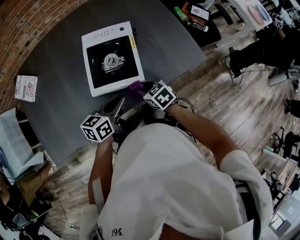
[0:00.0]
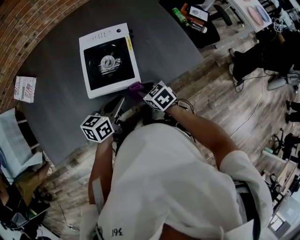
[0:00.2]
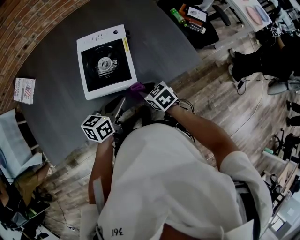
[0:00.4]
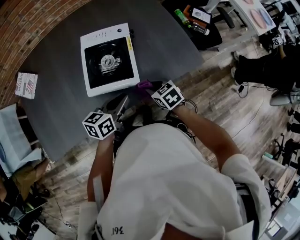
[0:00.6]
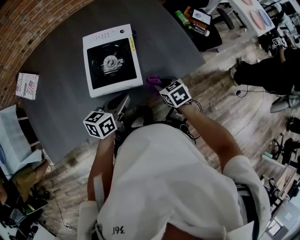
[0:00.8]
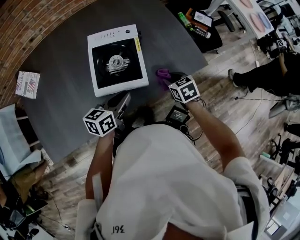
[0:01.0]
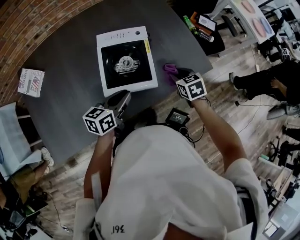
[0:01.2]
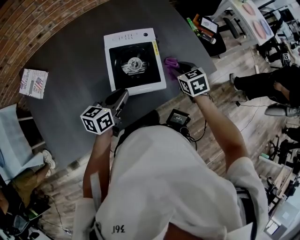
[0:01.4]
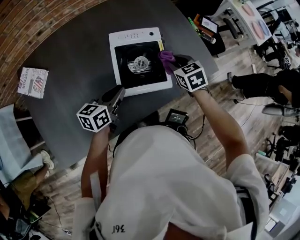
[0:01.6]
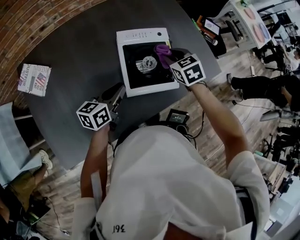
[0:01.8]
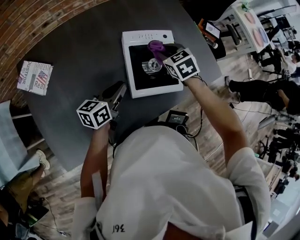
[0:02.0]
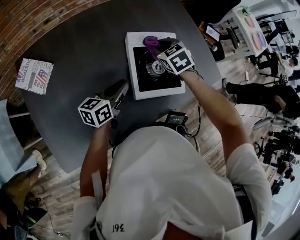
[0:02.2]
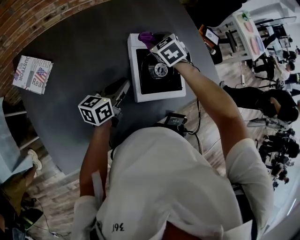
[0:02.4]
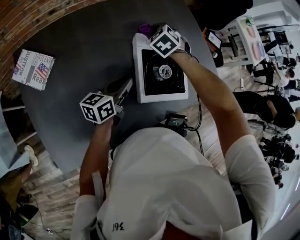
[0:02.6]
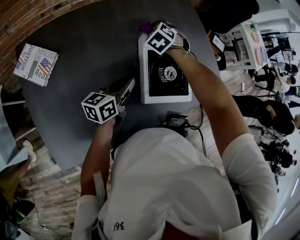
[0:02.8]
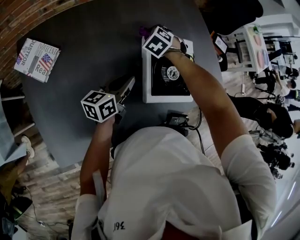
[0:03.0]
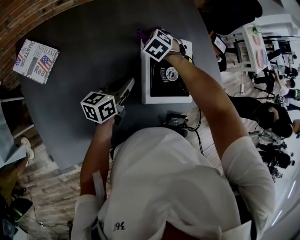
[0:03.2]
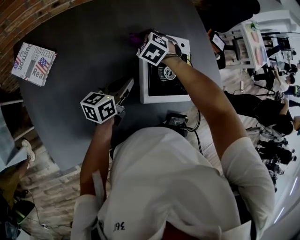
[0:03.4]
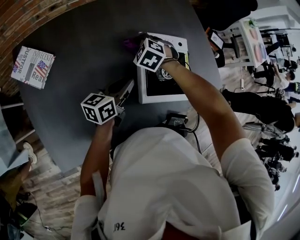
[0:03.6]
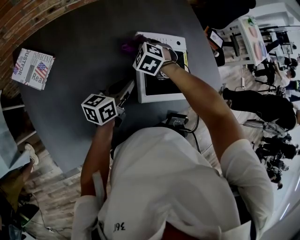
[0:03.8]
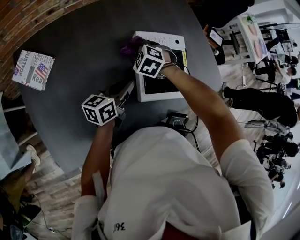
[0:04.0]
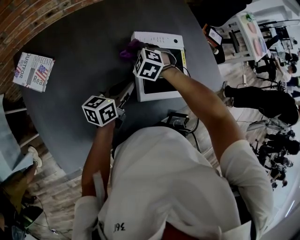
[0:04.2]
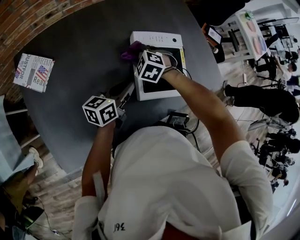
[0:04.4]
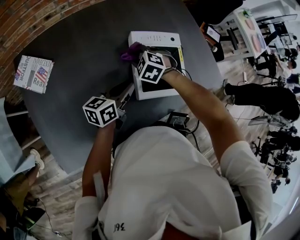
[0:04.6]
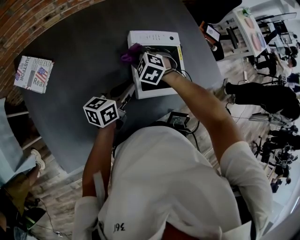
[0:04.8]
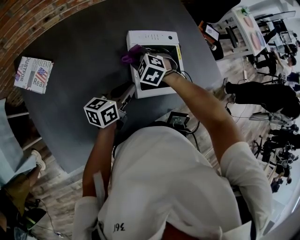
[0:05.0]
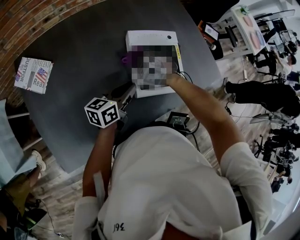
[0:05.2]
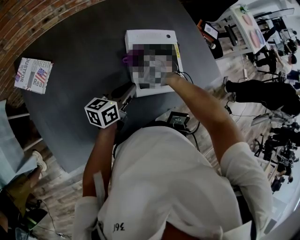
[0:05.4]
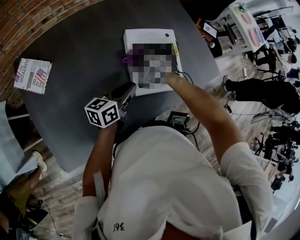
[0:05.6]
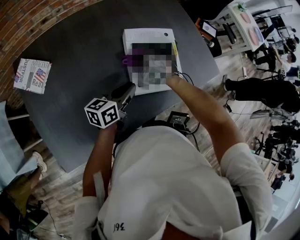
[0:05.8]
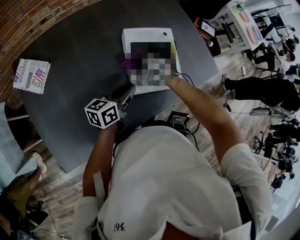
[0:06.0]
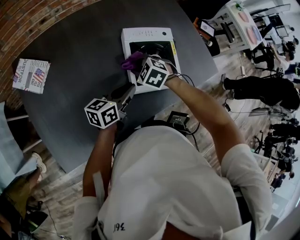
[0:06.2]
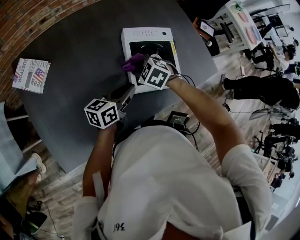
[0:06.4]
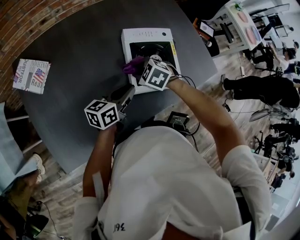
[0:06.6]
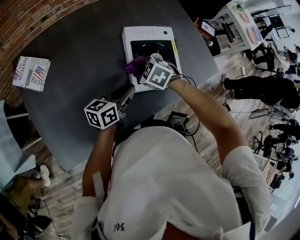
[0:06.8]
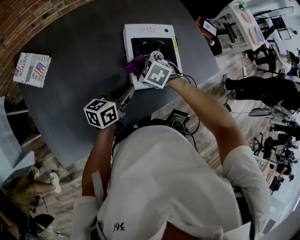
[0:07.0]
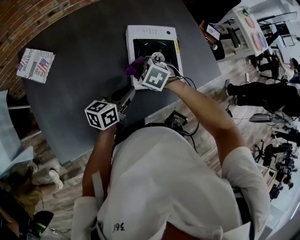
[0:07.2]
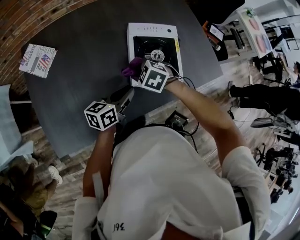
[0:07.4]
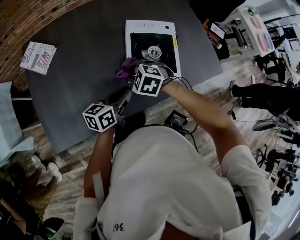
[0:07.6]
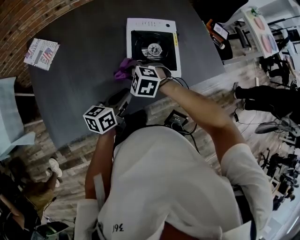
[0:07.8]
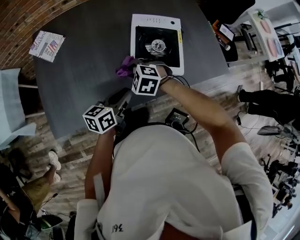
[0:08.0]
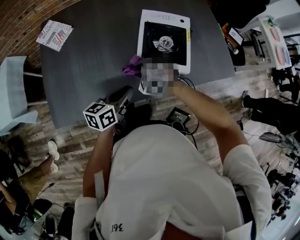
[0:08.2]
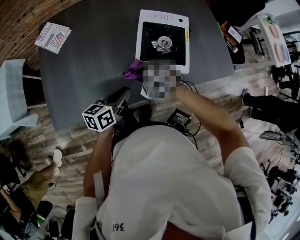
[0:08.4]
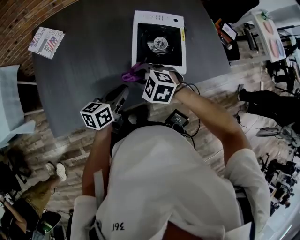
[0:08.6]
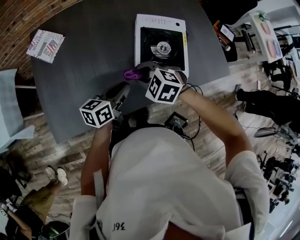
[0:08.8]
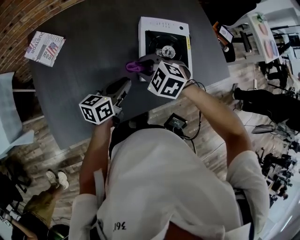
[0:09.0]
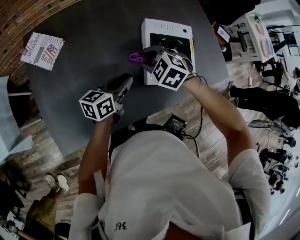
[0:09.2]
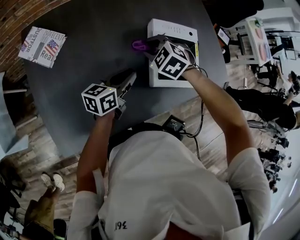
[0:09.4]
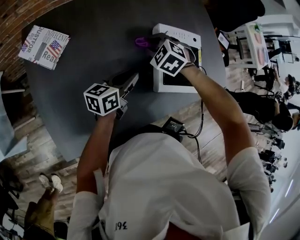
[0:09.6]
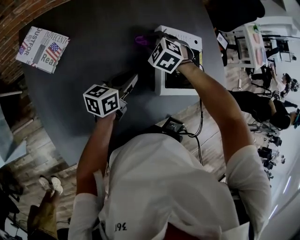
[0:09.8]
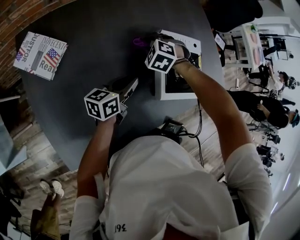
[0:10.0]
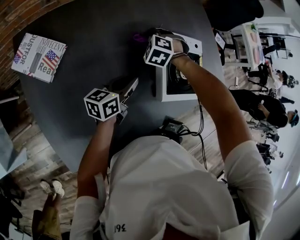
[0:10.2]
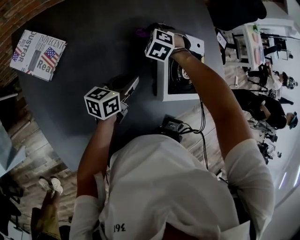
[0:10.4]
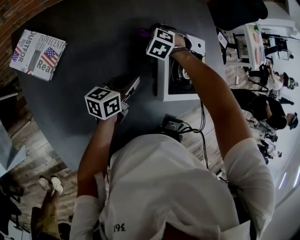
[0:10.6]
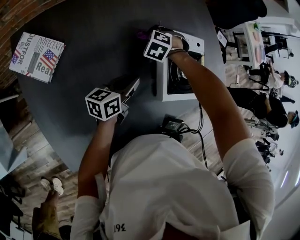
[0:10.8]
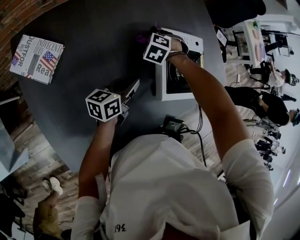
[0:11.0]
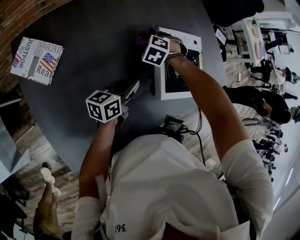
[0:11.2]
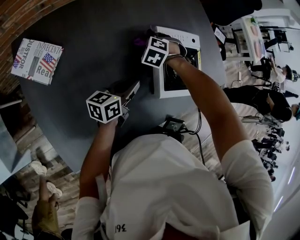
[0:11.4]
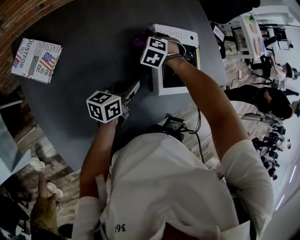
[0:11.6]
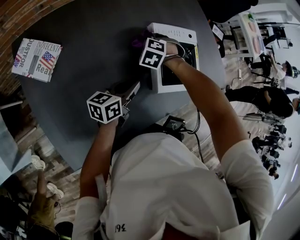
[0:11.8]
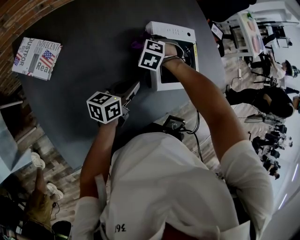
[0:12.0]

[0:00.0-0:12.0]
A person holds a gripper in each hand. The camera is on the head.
0:00.0 to 0:01.6: The right gripper goes some 15 cm forward and upward, and rotates approximately 20 degrees; the left gripper is displaced to the left and forward by roughly 15 cm.
0:01.6 to 0:03.0: The left gripper shifts some 10 cm to the left; the right gripper heads to the left, covering roughly 30 cm, and turns by approximately 40 degrees.
0:03.0 to 0:04.4: The right gripper shifts approximately 10 cm backward.
0:04.4 to 0:06.0: The right gripper goes roughly 5 cm backward. The left gripper ends up some 5 cm from where it was.
0:06.0 to 0:07.6: The grippers both shift backward by approximately 10 cm.
0:07.6 to 0:09.0: The left gripper travels to the left by approximately 5 cm; the right gripper moves roughly 5 cm backward and comes back.
0:09.0 to 0:10.4: The left gripper shifts by approximately 15 cm. Meanwhile the right gripper shifts by some 25 cm, and rotates some 30 degrees.
0:10.4 to 0:12.0: The left gripper is displaced to the right by approximately 5 cm, while the right gripper is displaced to the right and backward by about 10 cm.

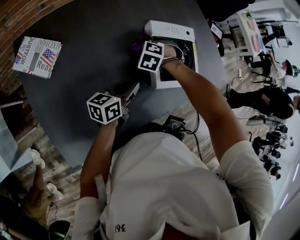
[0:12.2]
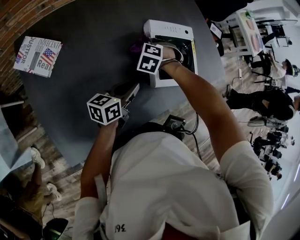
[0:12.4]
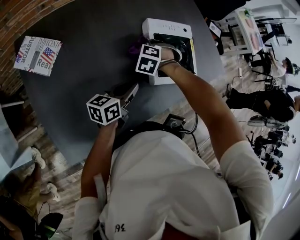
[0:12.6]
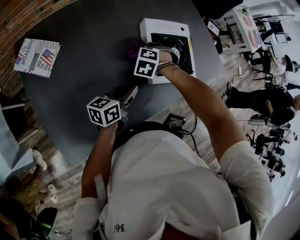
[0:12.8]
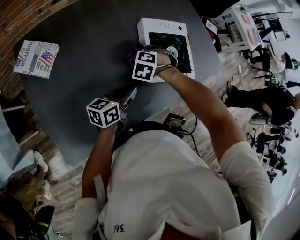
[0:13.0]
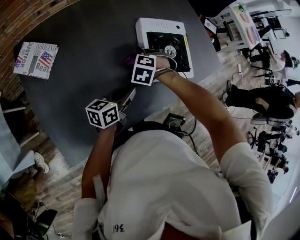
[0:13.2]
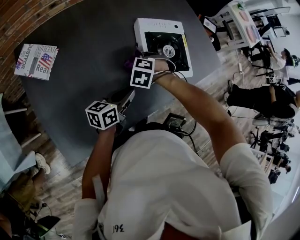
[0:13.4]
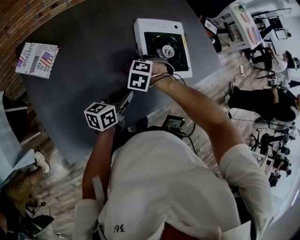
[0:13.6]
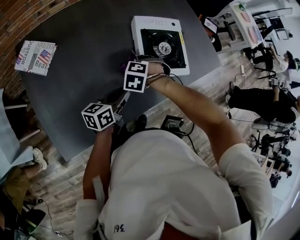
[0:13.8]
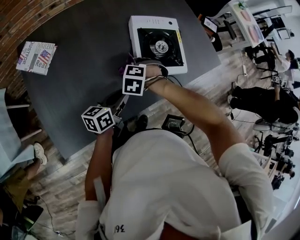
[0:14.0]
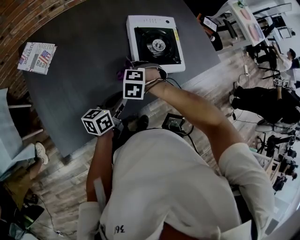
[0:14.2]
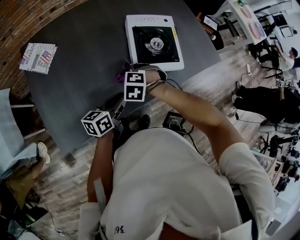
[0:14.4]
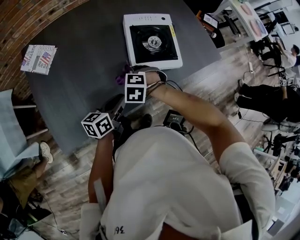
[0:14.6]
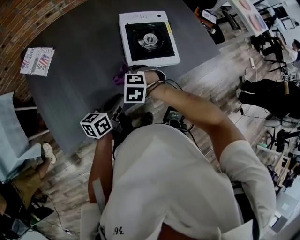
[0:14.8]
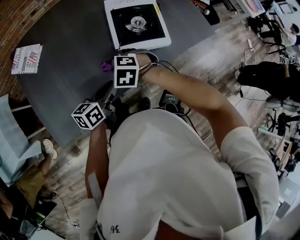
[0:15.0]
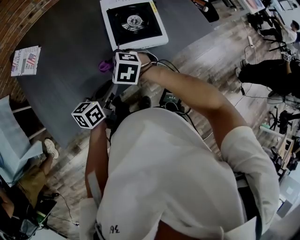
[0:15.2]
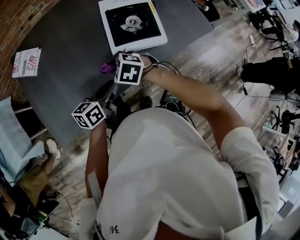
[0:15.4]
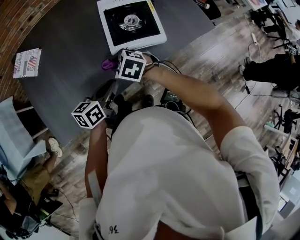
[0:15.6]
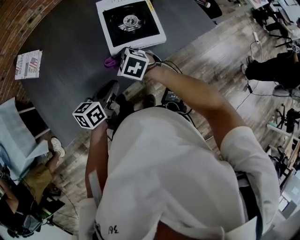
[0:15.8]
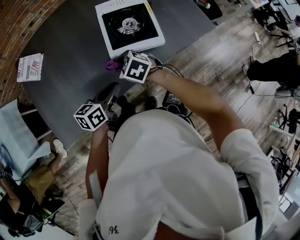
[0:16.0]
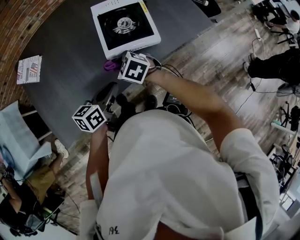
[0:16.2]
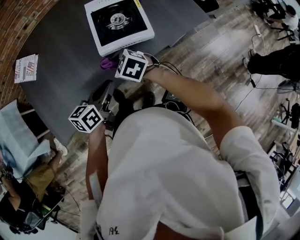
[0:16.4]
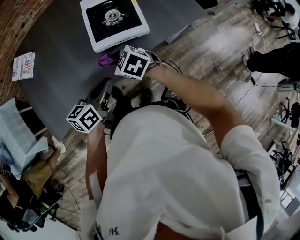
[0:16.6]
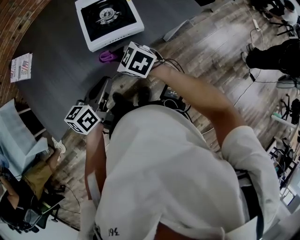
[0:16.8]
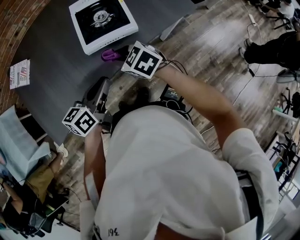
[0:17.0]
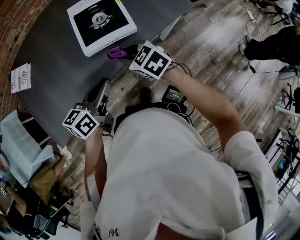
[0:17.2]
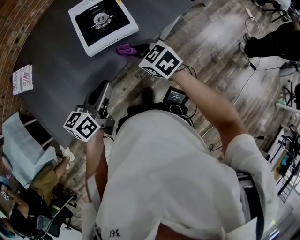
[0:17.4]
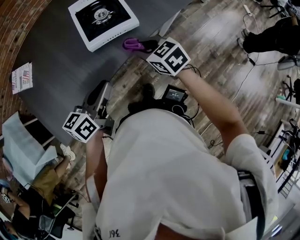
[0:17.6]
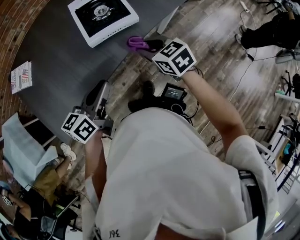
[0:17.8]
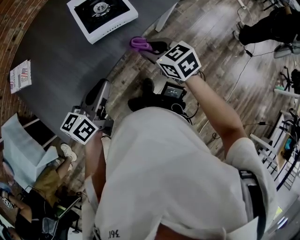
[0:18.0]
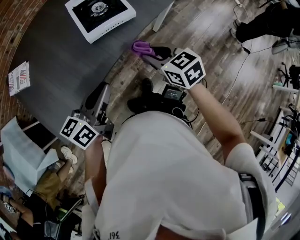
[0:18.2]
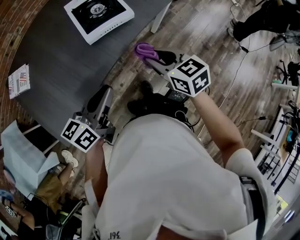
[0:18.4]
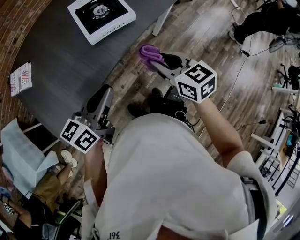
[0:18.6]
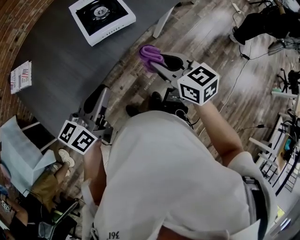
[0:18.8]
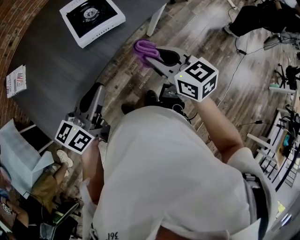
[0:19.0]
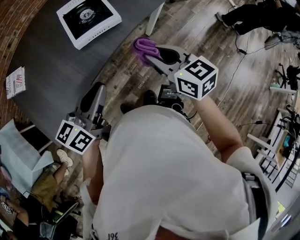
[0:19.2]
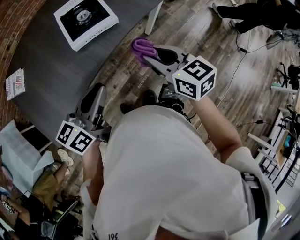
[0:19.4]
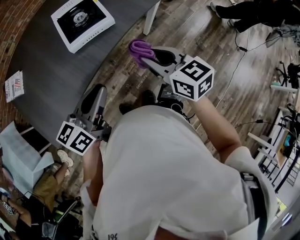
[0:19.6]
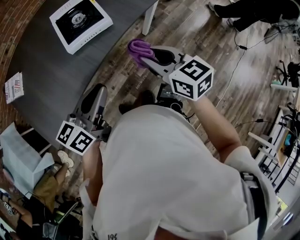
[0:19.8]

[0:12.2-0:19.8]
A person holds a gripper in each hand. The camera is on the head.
0:12.2 to 0:13.8: The left gripper moves roughly 10 cm, while the right gripper moves some 15 cm.
0:13.8 to 0:15.2: The left gripper changes place by approximately 10 cm. Meanwhile the right gripper moves about 10 cm, and changes its angle by about 30 degrees.
0:15.2 to 0:16.8: The left gripper shifts roughly 5 cm to the right. Meanwhile the right gripper shifts some 10 cm to the right, and swivels roughly 30 degrees.
0:16.8 to 0:18.2: The right gripper shifts roughly 15 cm backward, to the right and upward, and changes its angle by some 30 degrees, while the left gripper is displaced backward and upward by roughly 10 cm.
0:18.2 to 0:19.8: The left gripper travels to the right by roughly 10 cm; the right gripper is displaced to the right and upward by about 10 cm.

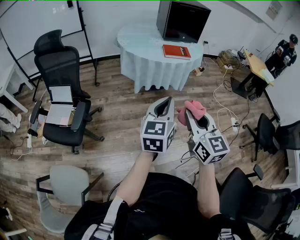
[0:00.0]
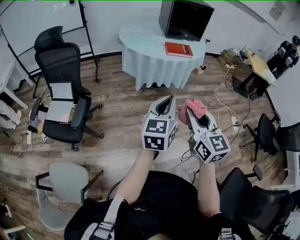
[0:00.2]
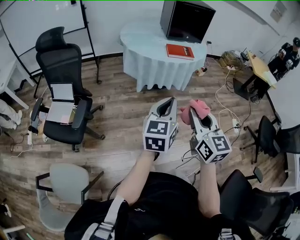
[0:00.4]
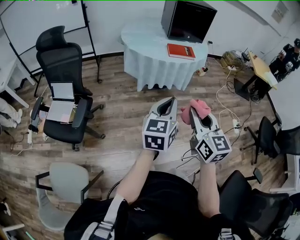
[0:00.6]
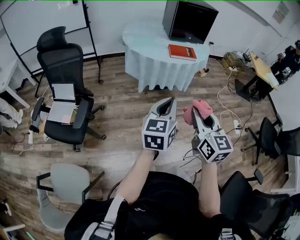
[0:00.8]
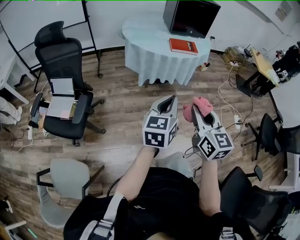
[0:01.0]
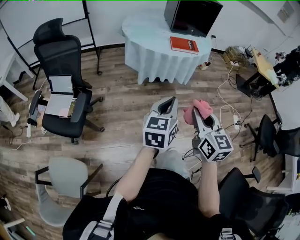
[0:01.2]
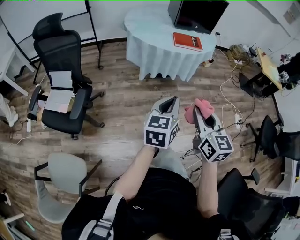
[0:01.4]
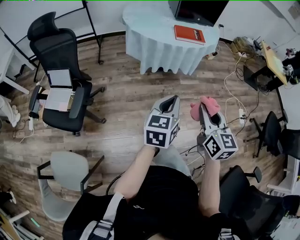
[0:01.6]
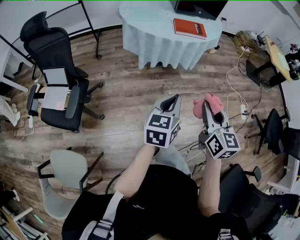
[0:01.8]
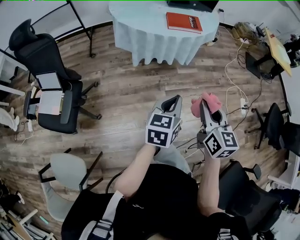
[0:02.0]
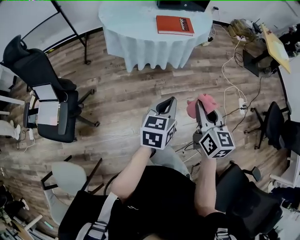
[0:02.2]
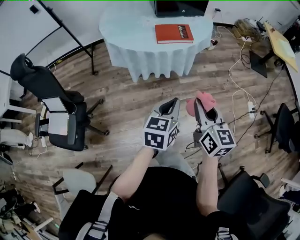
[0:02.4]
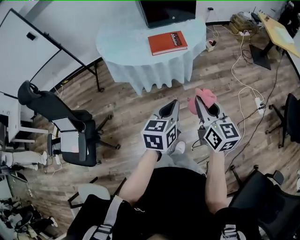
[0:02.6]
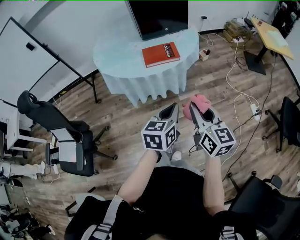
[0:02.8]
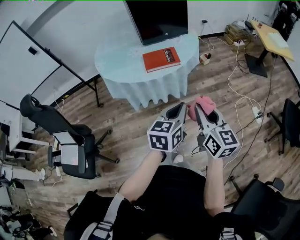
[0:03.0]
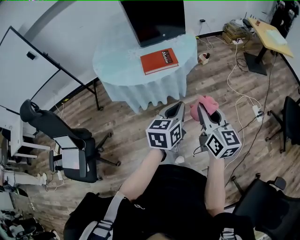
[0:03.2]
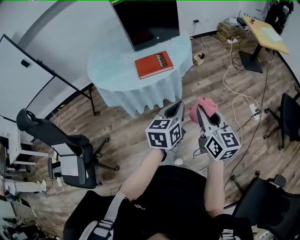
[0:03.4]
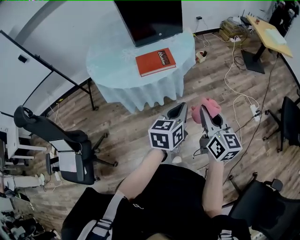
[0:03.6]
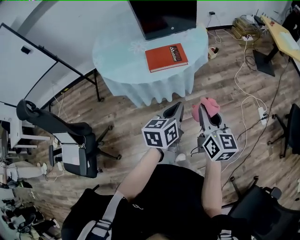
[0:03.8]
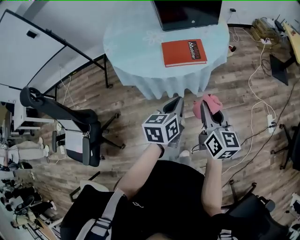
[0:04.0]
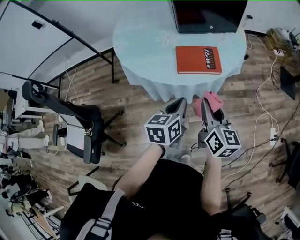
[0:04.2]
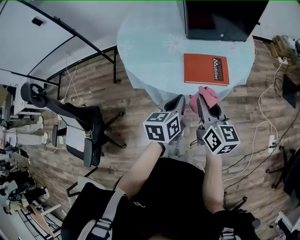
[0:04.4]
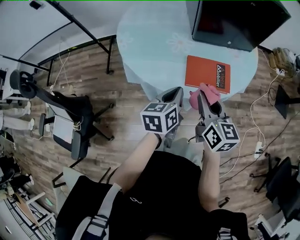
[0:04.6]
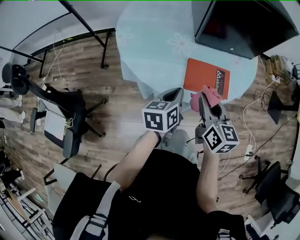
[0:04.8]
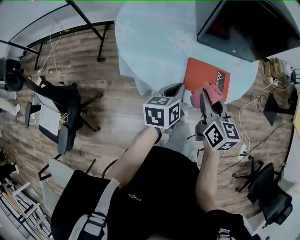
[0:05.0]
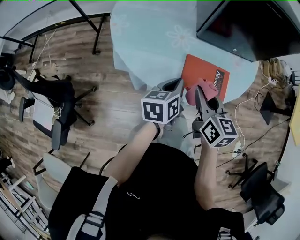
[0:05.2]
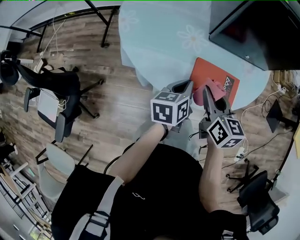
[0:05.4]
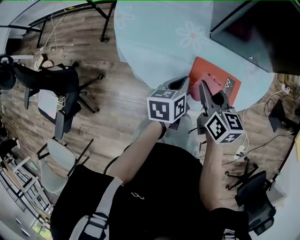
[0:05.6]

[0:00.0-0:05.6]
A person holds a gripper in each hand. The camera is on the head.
0:00.0 to 0:01.4: The right gripper shifts by some 5 cm, while the left gripper goes approximately 5 cm downward.
0:01.4 to 0:02.8: Both grippers move forward and to the right, approximately 30 cm.
0:02.8 to 0:04.2: Both grippers move forward and to the left, approximately 25 cm.
0:04.2 to 0:05.6: Both grippers travel together forward, approximately 25 cm. The right gripper rotates some 30 degrees, while the left gripper turns by some 20 degrees.
